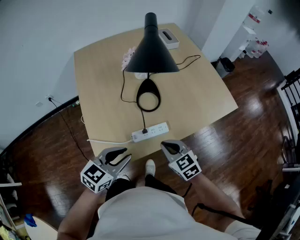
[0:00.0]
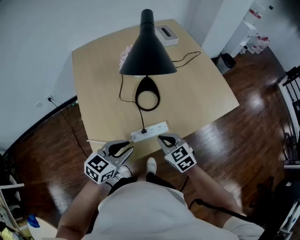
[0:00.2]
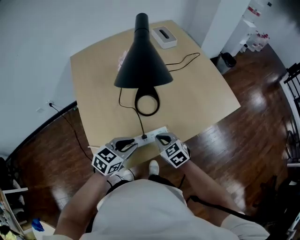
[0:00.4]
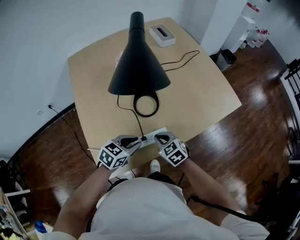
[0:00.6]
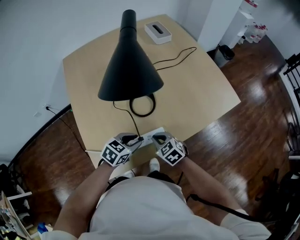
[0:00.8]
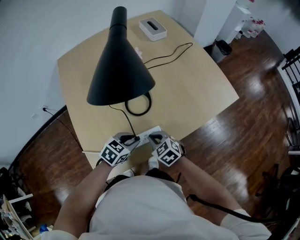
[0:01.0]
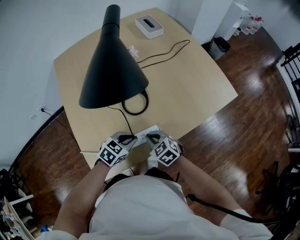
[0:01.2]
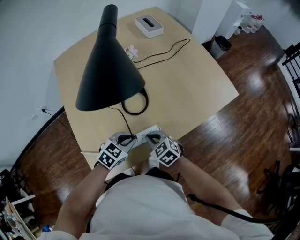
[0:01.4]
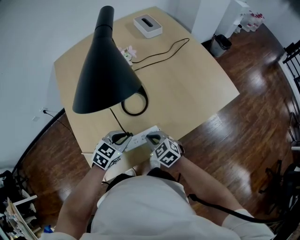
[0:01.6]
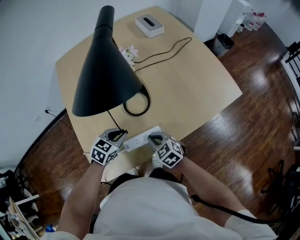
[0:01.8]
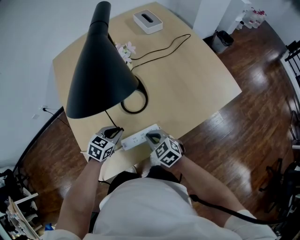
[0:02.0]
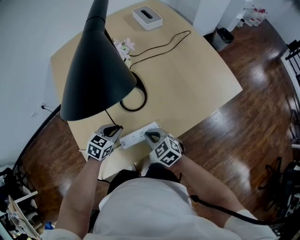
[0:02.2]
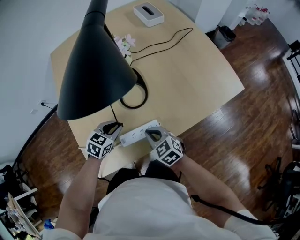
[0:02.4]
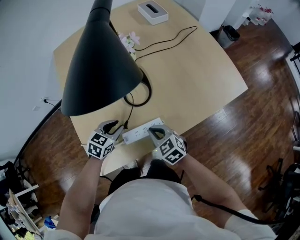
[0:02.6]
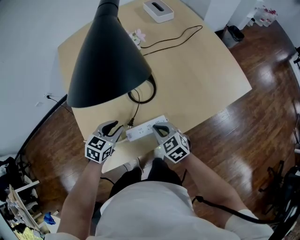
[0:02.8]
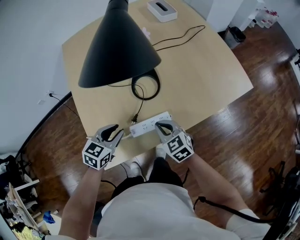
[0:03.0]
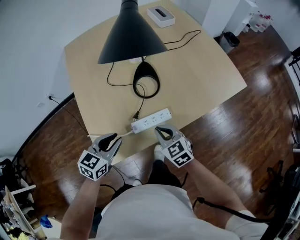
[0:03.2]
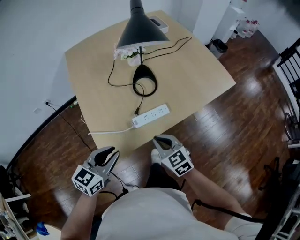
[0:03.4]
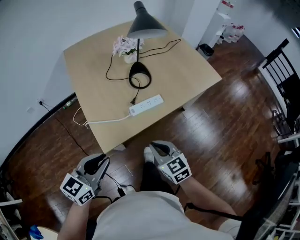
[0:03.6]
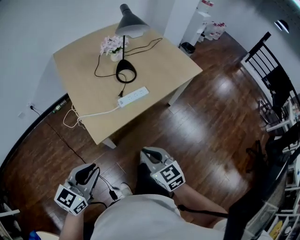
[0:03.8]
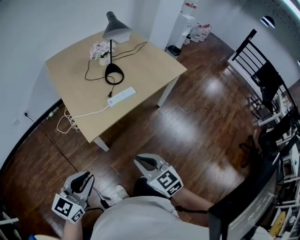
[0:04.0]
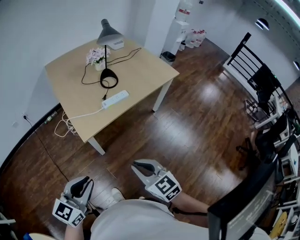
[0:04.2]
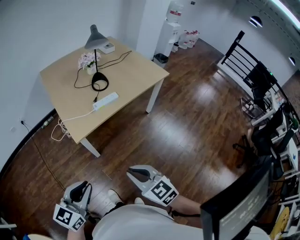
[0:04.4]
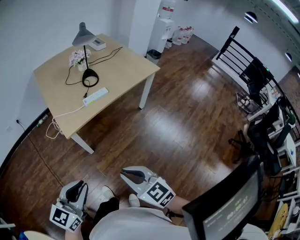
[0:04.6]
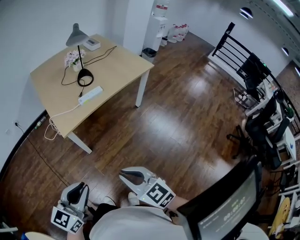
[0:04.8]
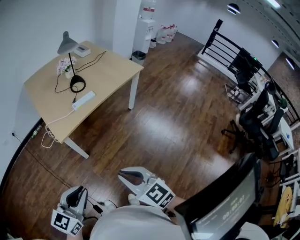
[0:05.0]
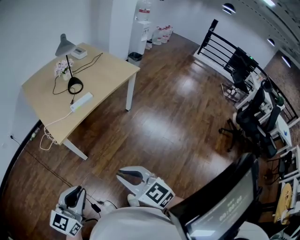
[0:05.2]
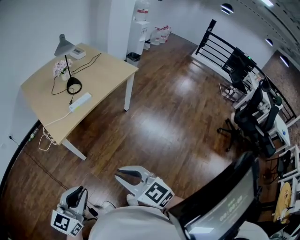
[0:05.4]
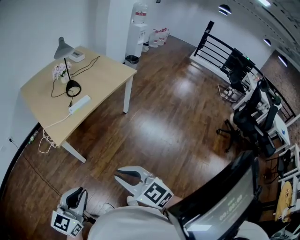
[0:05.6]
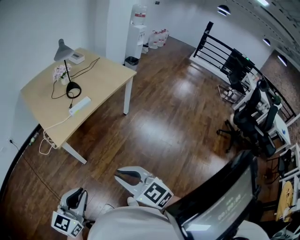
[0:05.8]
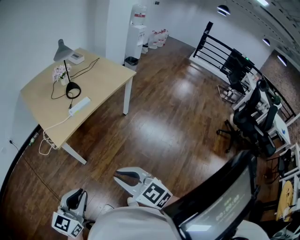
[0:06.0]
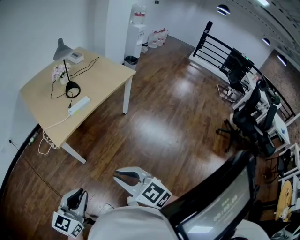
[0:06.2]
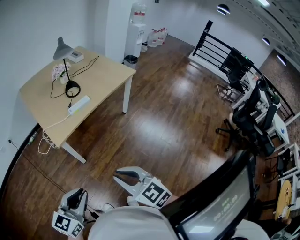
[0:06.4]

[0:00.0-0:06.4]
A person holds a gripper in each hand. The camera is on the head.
0.0 to 1.6 s: The left gripper moves forward and downward, some 20 cm, while the right gripper shifts some 15 cm downward and forward.
1.6 to 3.2 s: The left gripper goes roughly 15 cm to the left, backward and upward, while the right gripper shifts by roughly 5 cm.
3.2 to 4.8 s: The two grippers travel together, backward, some 50 cm. The left gripper turns by about 20 degrees.
4.8 to 6.4 s: The grippers stay close to where they were, moving slightly.

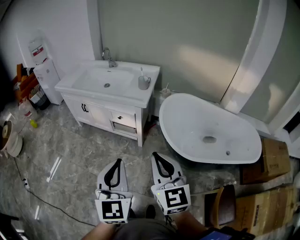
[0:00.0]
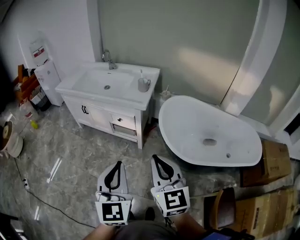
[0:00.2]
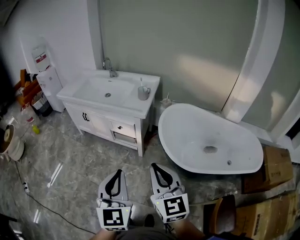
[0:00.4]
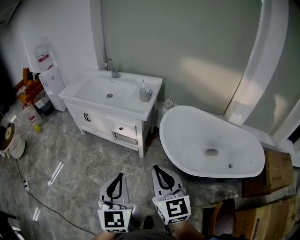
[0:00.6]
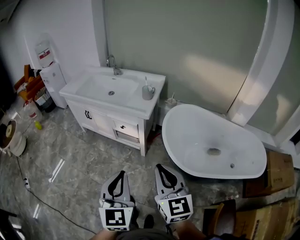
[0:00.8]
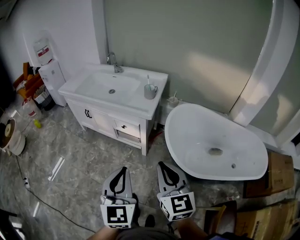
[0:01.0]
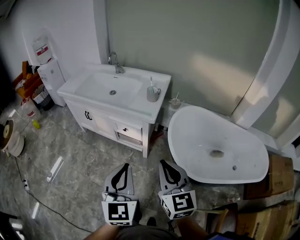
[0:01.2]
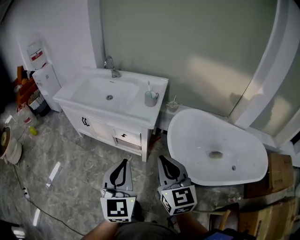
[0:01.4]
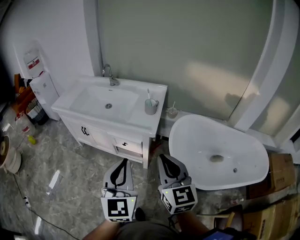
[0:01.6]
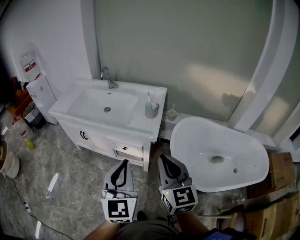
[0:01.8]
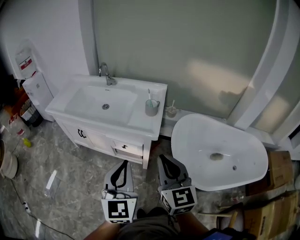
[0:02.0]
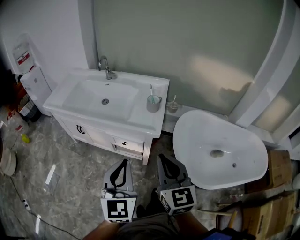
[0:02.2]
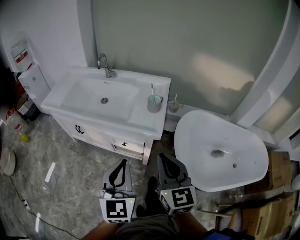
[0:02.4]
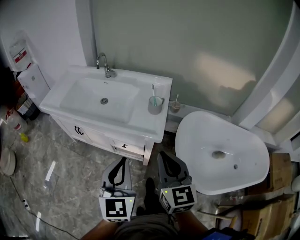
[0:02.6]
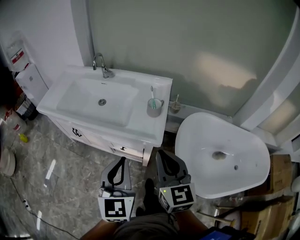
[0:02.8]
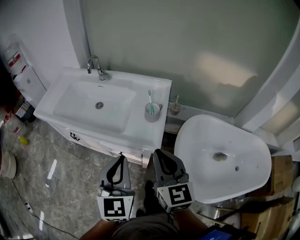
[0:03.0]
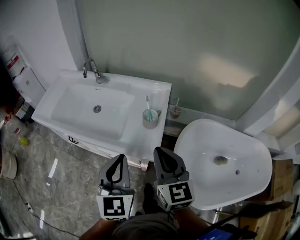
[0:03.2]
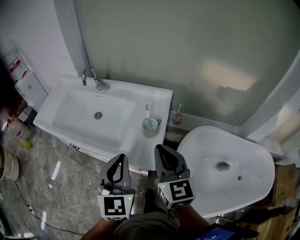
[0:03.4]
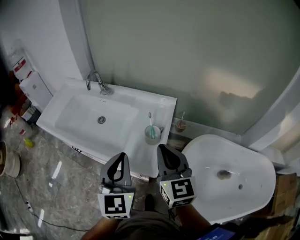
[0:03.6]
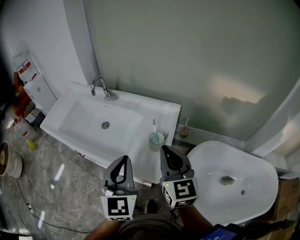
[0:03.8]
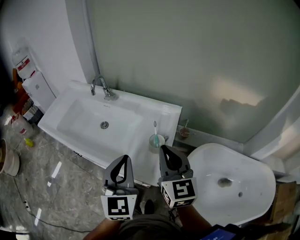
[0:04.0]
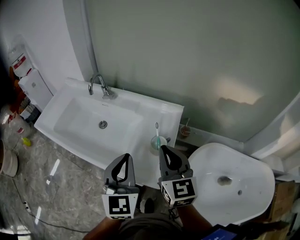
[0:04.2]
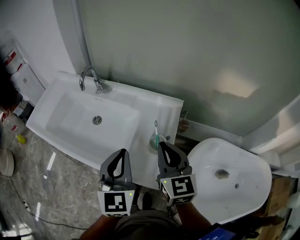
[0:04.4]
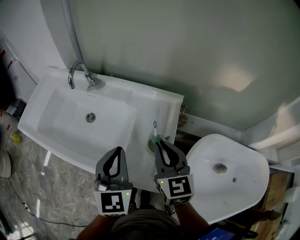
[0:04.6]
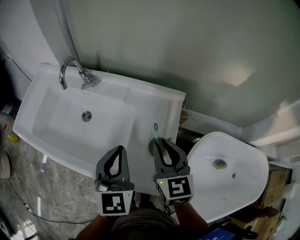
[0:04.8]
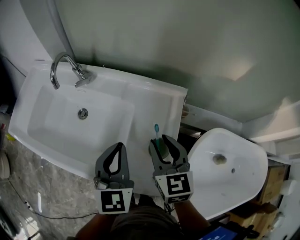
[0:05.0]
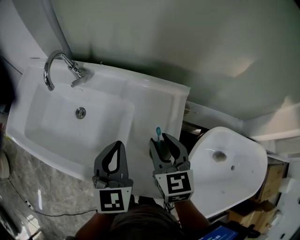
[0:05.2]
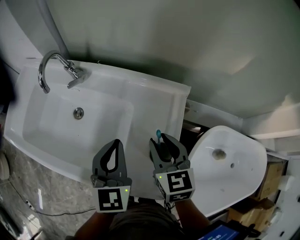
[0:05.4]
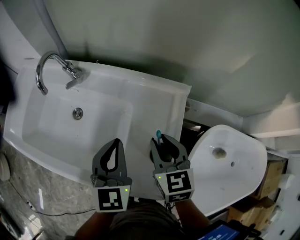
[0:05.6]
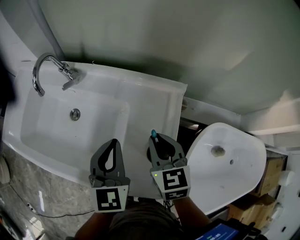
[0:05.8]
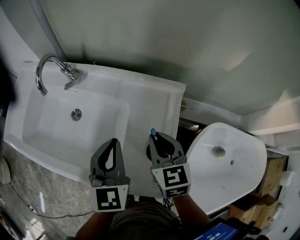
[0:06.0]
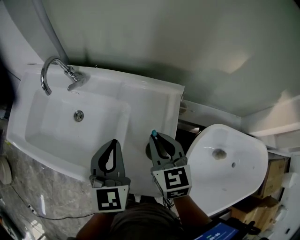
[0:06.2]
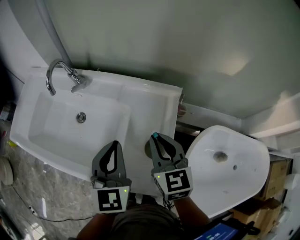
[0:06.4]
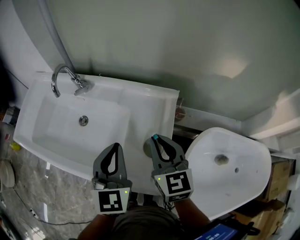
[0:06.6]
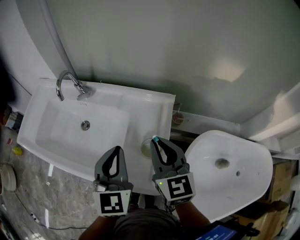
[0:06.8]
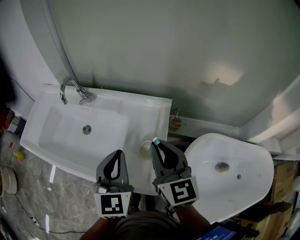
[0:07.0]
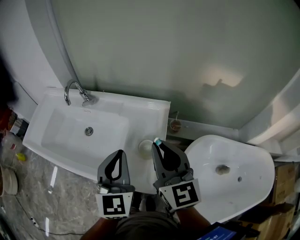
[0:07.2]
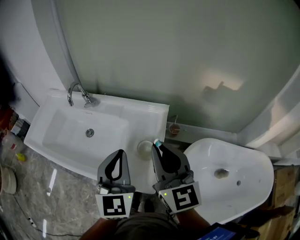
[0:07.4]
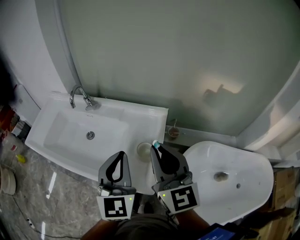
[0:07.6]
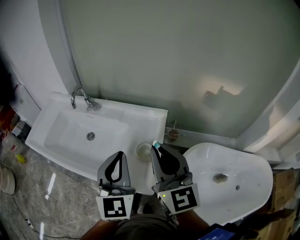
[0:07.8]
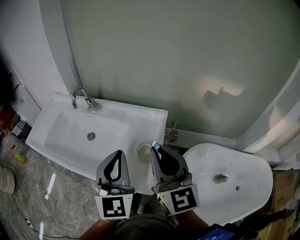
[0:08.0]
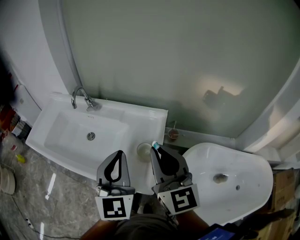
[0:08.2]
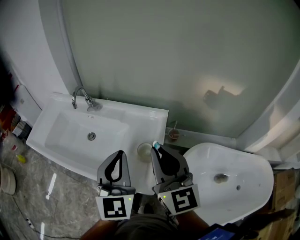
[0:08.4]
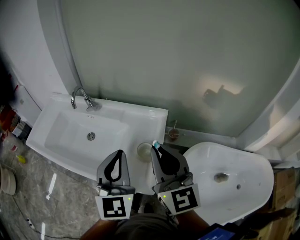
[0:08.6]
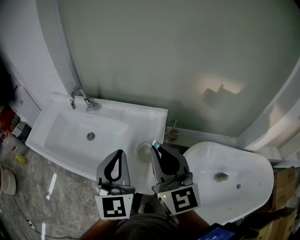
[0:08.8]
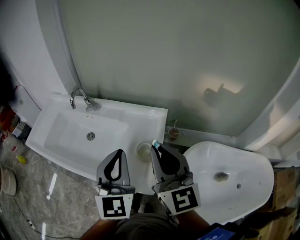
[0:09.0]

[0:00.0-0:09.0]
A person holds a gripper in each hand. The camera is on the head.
0.0 to 1.6 s: The two grippers go about 20 cm forward.
1.6 to 3.0 s: The grippers both shift forward by about 20 cm.
3.0 to 4.4 s: The two grippers go roughly 20 cm forward.
4.4 to 6.0 s: The left gripper is displaced forward and downward by some 15 cm, while the right gripper travels downward and forward by some 15 cm, and swivels approximately 20 degrees.
6.0 to 7.6 s: The left gripper shifts about 20 cm backward and upward. The right gripper heads upward and backward, covering some 25 cm, and tips its fingers upward by some 30 degrees.
7.6 to 9.0 s: The grippers move only a little.

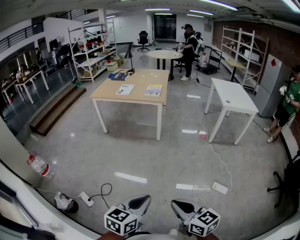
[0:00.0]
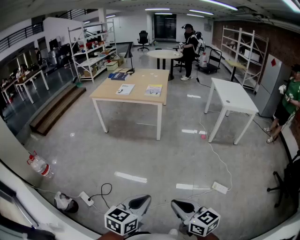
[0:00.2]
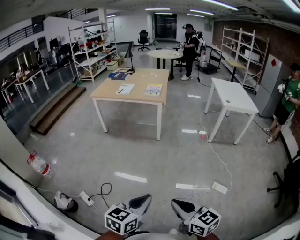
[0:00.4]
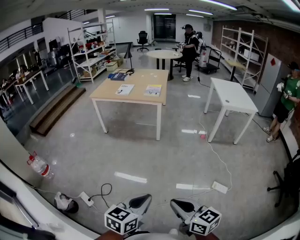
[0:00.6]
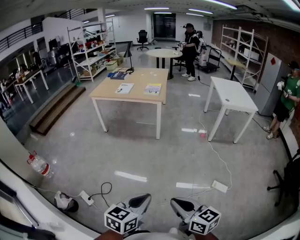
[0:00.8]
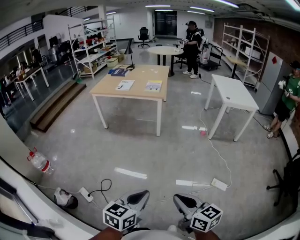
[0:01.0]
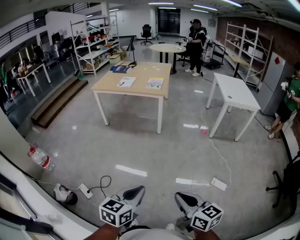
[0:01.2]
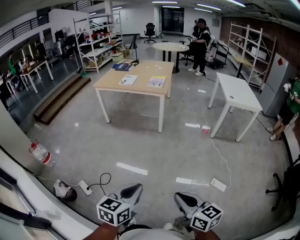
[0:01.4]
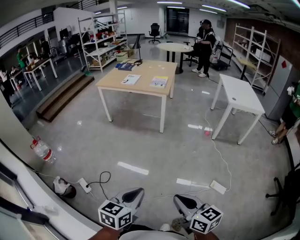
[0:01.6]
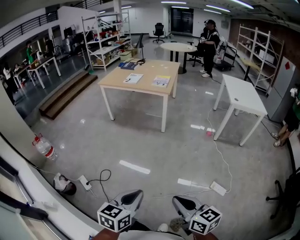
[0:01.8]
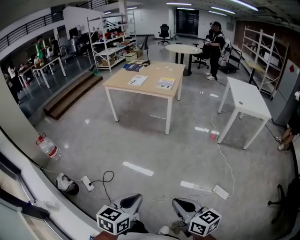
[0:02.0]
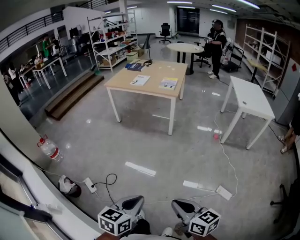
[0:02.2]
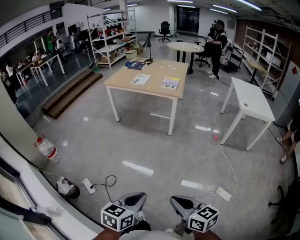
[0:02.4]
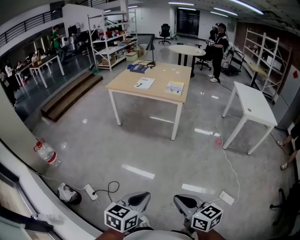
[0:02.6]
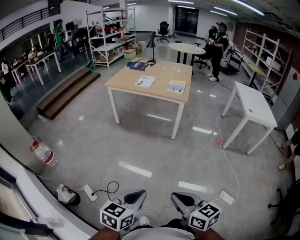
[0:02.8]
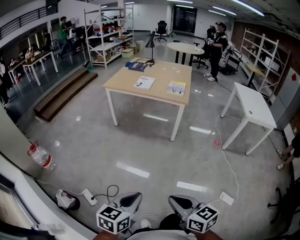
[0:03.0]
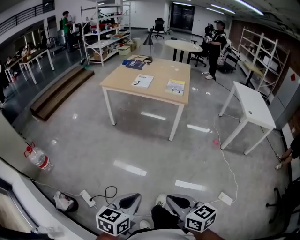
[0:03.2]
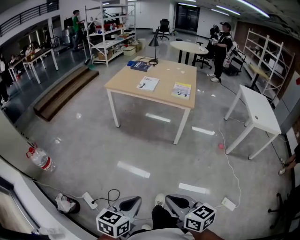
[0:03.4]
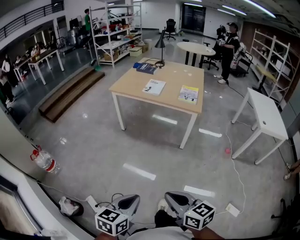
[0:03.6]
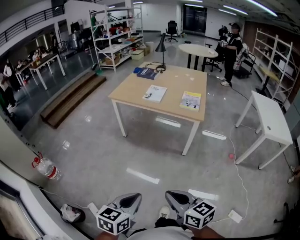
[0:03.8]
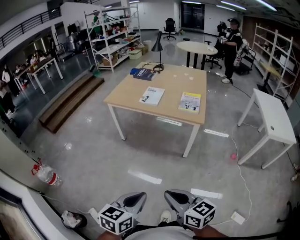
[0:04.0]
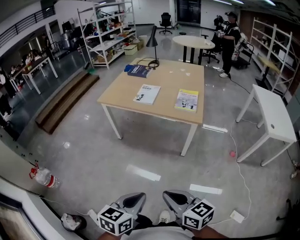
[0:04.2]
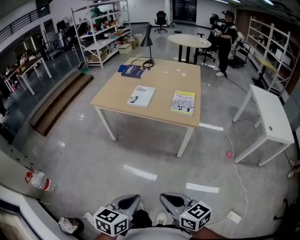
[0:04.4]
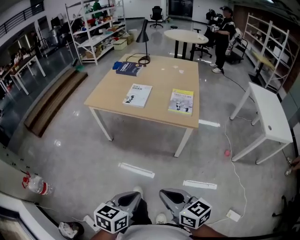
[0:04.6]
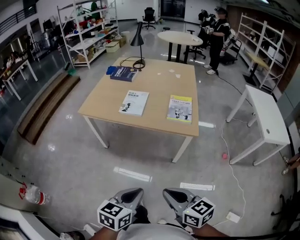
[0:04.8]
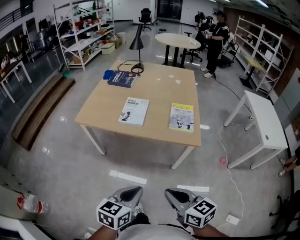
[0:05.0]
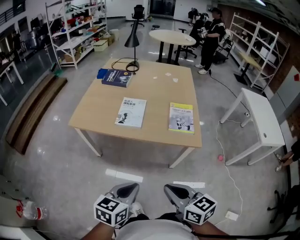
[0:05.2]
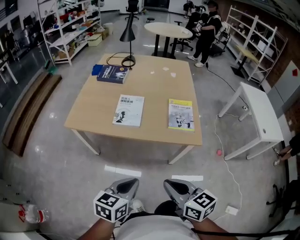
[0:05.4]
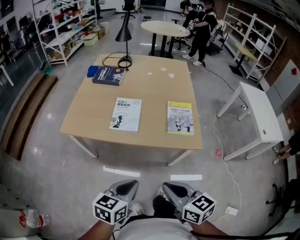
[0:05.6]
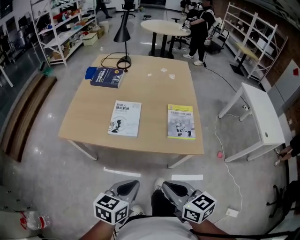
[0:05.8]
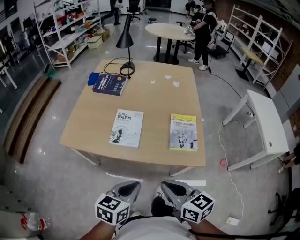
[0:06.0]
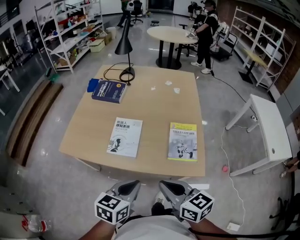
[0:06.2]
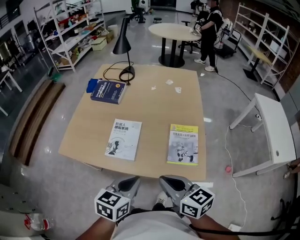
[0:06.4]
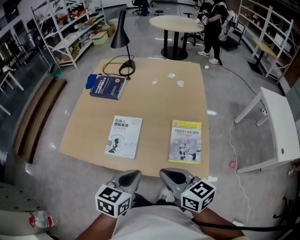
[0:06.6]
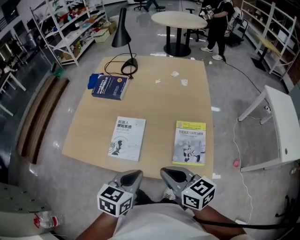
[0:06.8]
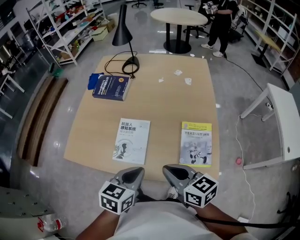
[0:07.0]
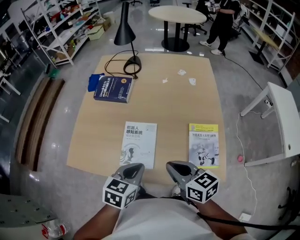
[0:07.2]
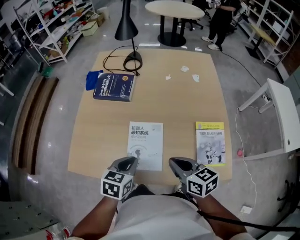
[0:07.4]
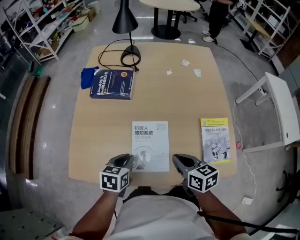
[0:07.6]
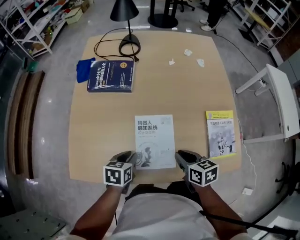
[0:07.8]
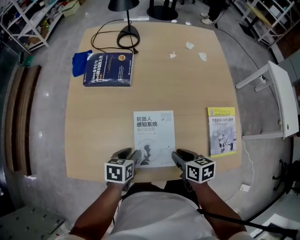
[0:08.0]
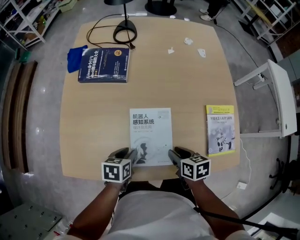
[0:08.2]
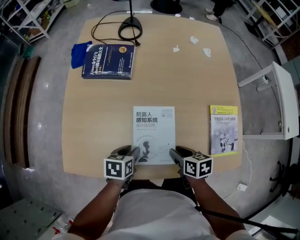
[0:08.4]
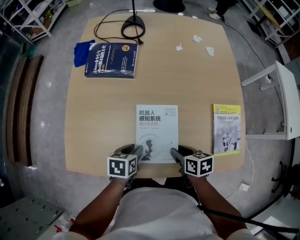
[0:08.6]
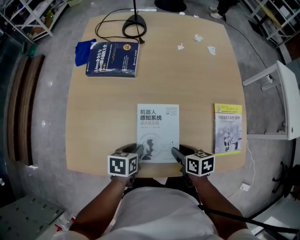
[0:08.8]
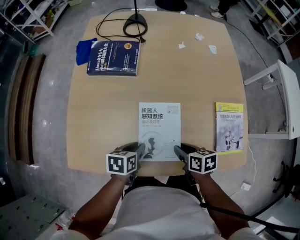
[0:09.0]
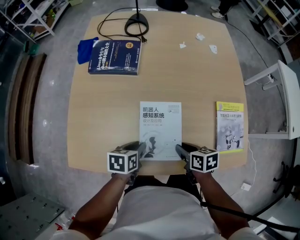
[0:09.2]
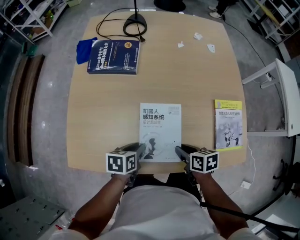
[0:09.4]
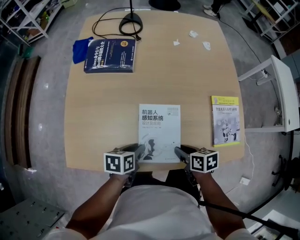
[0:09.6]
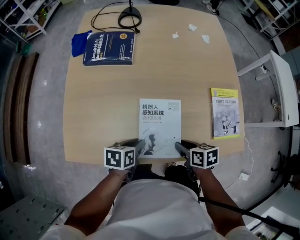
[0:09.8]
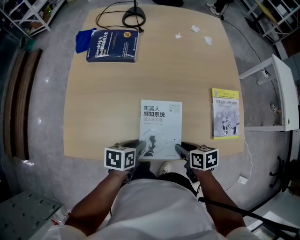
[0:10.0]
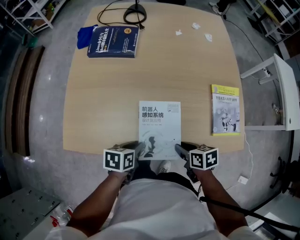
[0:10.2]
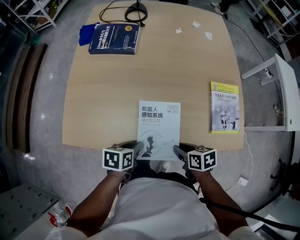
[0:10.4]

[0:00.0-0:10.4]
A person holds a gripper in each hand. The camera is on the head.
0.0 to 1.4 s: The grippers stay close to where they were, moving slightly.
1.4 to 3.0 s: Both grippers travel together forward and to the left, roughly 20 cm.
3.0 to 4.4 s: The grippers both shift forward by approximately 35 cm.
4.4 to 6.0 s: Both grippers are carried forward, roughly 40 cm.
6.0 to 7.4 s: Both grippers travel together forward, roughly 25 cm.
7.4 to 9.0 s: Both grippers move downward, approximately 15 cm. The left gripper changes its angle by about 30 degrees. Meanwhile the right gripper rotates roughly 30 degrees, and opens up.
9.0 to 10.4 s: Both grippers move backward, about 10 cm.
